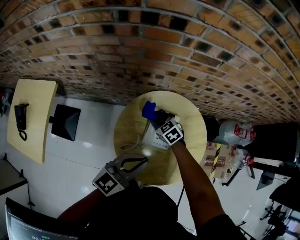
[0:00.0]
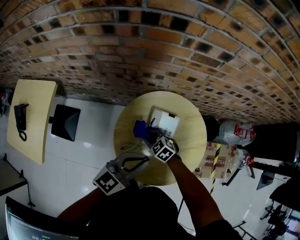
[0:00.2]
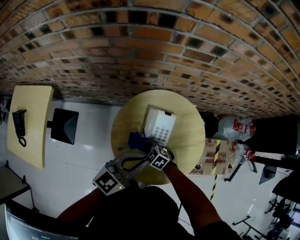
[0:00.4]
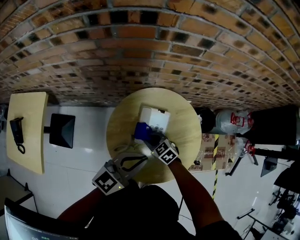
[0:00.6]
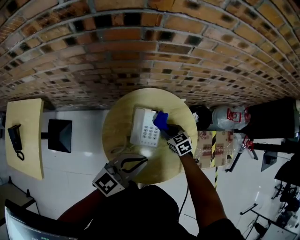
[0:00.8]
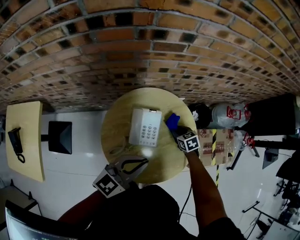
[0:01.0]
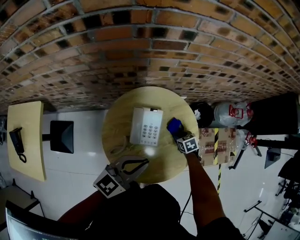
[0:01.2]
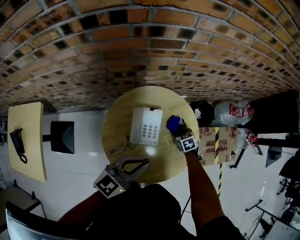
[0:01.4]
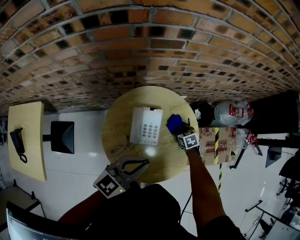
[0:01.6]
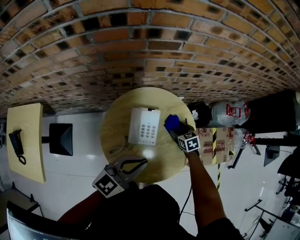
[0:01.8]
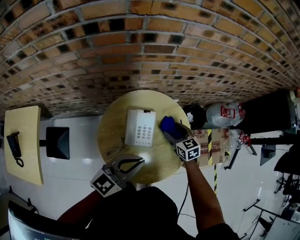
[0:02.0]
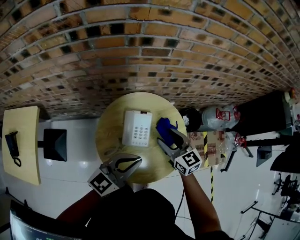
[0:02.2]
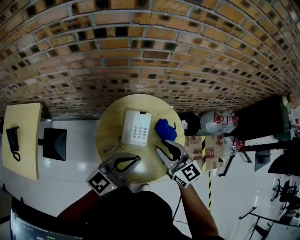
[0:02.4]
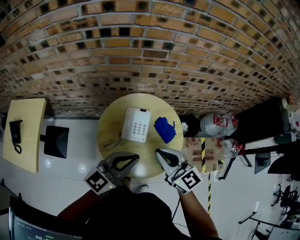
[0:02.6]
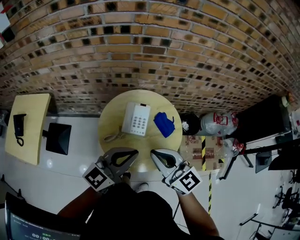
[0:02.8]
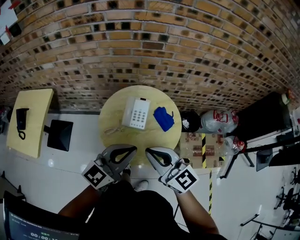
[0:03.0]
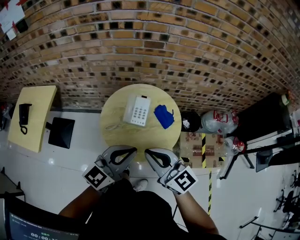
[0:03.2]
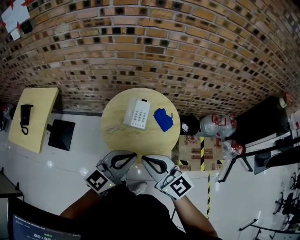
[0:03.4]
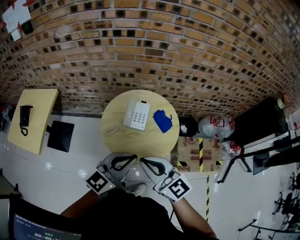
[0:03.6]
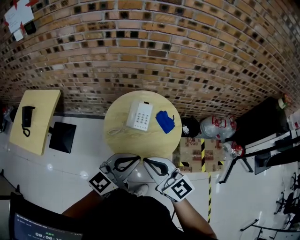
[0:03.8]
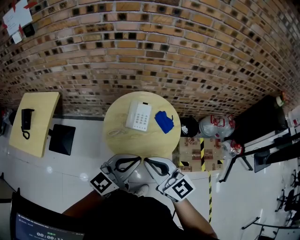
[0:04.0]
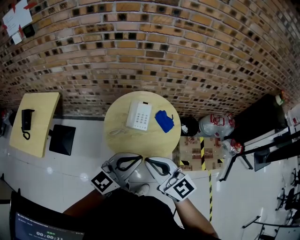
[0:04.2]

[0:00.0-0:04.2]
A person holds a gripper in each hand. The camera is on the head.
0:00.0 to 0:01.4: The right gripper ends up some 30 cm from where it was, and turns by approximately 40 degrees, while the left gripper changes place by some 10 cm.
0:01.4 to 0:02.8: The left gripper moves upward and backward, some 15 cm. The right gripper moves upward and backward, approximately 50 cm, tilts its fingers about 60 degrees upward, and closes up.
0:02.8 to 0:04.2: The grippers both shift backward by about 10 cm.

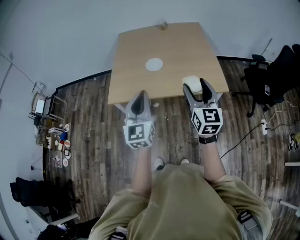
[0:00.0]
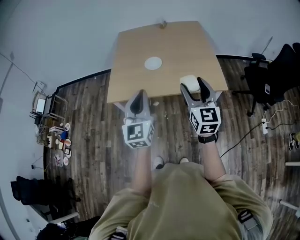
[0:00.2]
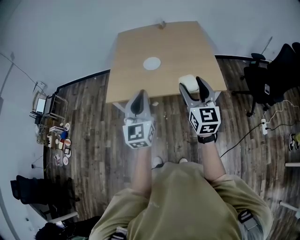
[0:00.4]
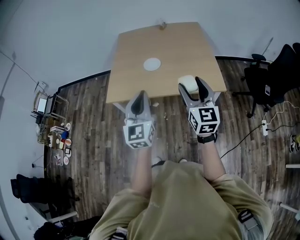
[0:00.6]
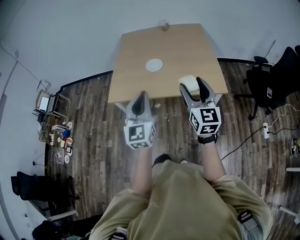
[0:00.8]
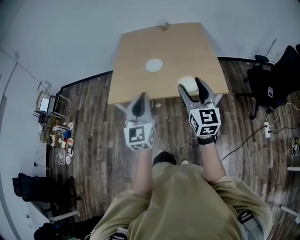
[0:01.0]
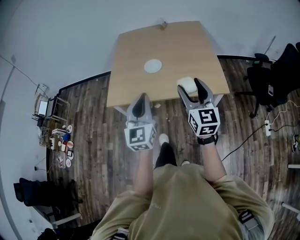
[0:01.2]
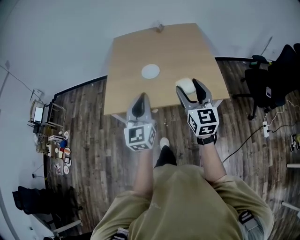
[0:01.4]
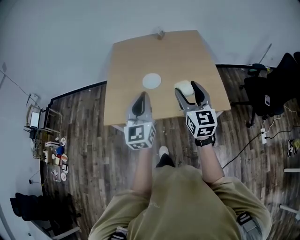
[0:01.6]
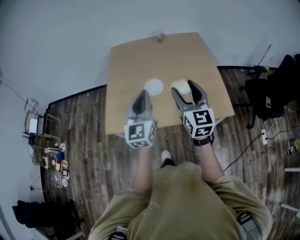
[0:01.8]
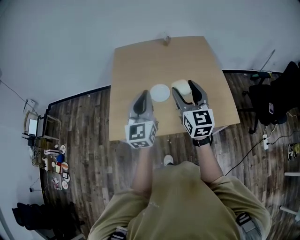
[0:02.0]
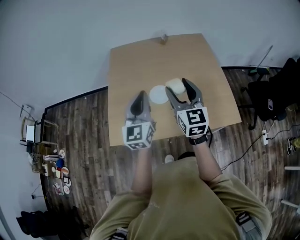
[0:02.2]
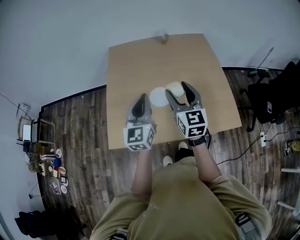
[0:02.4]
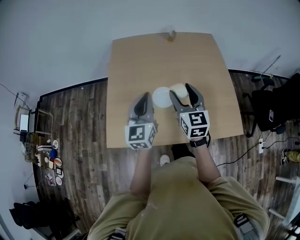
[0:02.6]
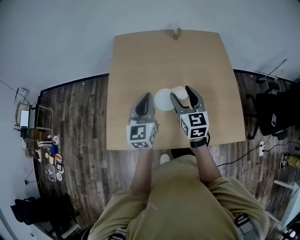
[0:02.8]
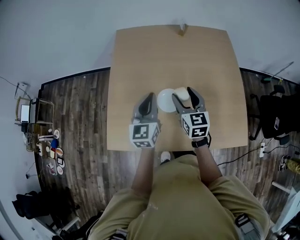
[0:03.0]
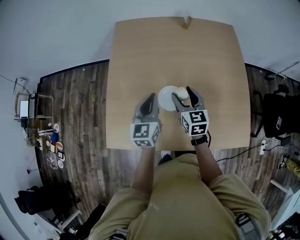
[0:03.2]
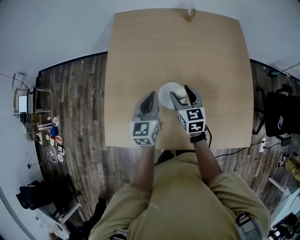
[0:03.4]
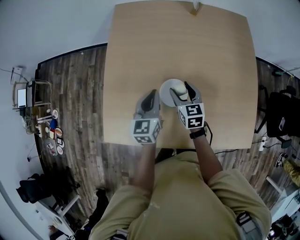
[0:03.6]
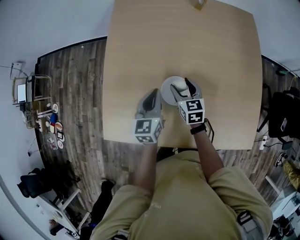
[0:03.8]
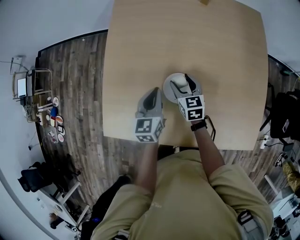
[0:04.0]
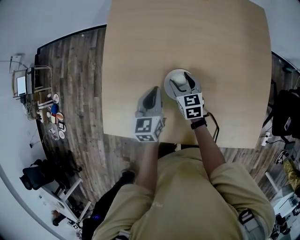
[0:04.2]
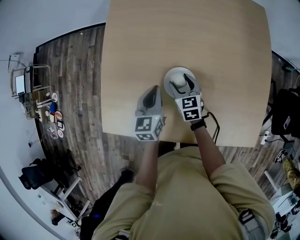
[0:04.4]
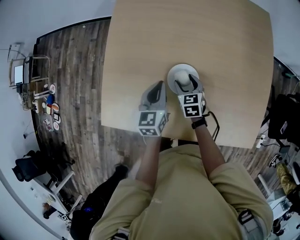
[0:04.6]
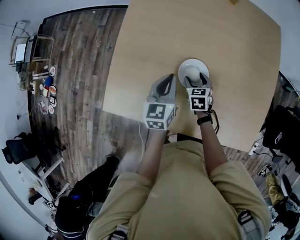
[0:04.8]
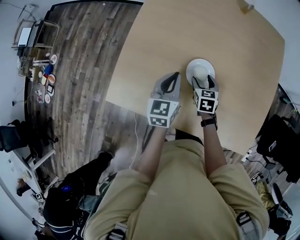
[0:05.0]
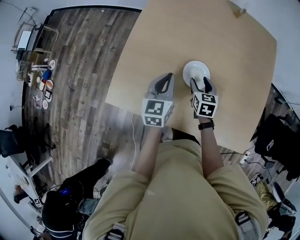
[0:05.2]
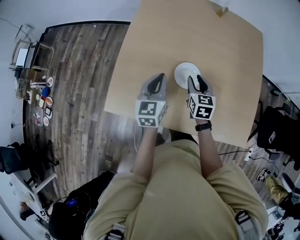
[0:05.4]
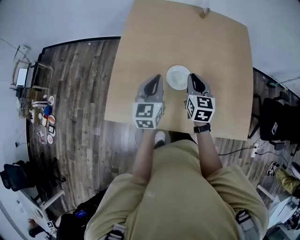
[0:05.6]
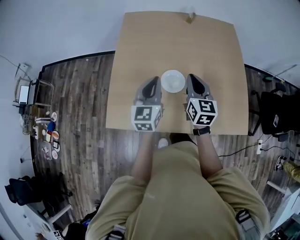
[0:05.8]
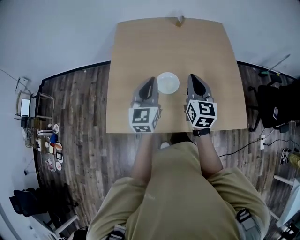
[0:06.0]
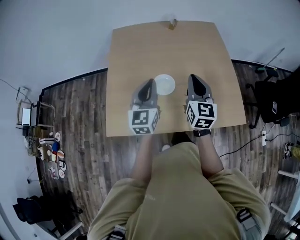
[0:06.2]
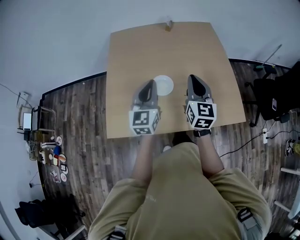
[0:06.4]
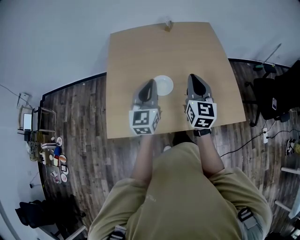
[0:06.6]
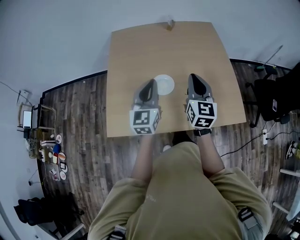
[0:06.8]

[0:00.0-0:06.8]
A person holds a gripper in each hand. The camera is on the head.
0:00.0 to 0:01.4: The grippers both shift forward by approximately 10 cm.
0:01.4 to 0:02.8: The two grippers travel together, forward, some 40 cm.
0:02.8 to 0:04.0: Both grippers travel together downward and forward, roughly 25 cm. The left gripper swivels roughly 20 degrees, while the right gripper turns by approximately 30 degrees.
0:04.0 to 0:05.4: The left gripper is displaced backward, to the left and upward by about 15 cm; the right gripper moves backward and upward, approximately 10 cm, and closes up.
0:05.4 to 0:06.8: Both grippers move upward, to the right and backward, roughly 25 cm. The left gripper swivels some 20 degrees, while the right gripper rotates approximately 30 degrees, and closes its fingers.

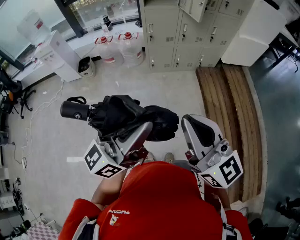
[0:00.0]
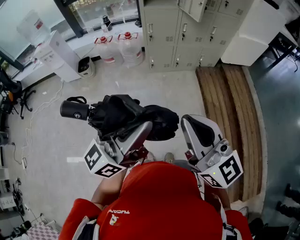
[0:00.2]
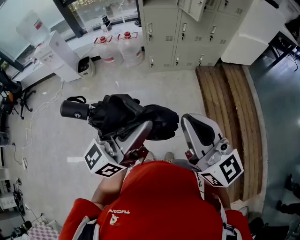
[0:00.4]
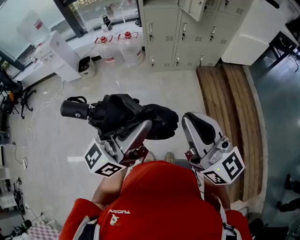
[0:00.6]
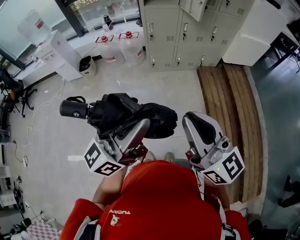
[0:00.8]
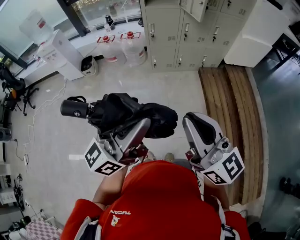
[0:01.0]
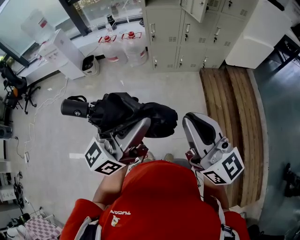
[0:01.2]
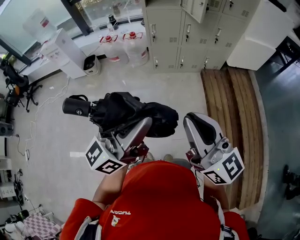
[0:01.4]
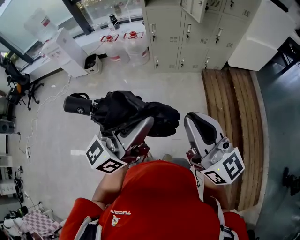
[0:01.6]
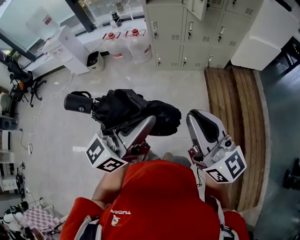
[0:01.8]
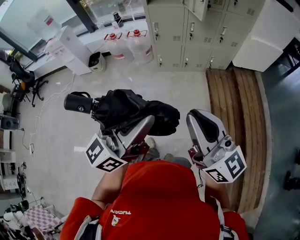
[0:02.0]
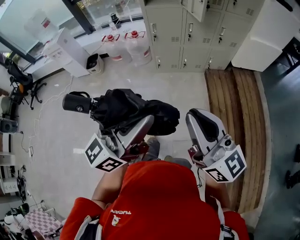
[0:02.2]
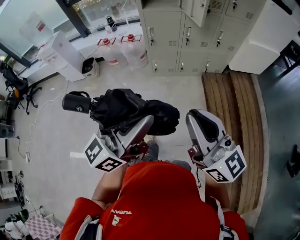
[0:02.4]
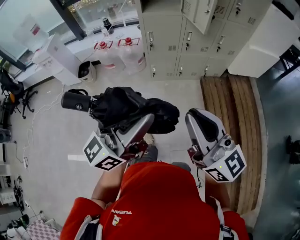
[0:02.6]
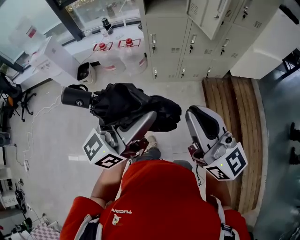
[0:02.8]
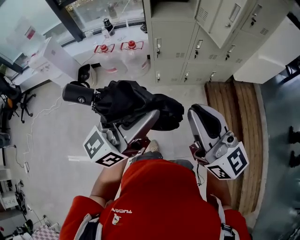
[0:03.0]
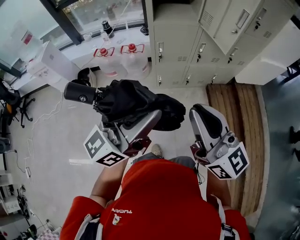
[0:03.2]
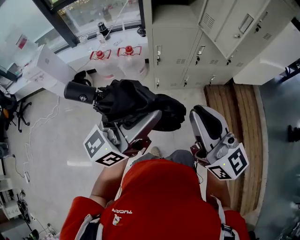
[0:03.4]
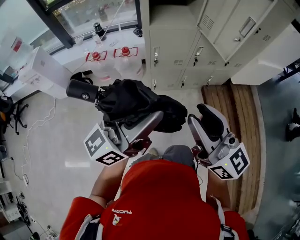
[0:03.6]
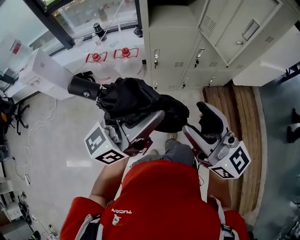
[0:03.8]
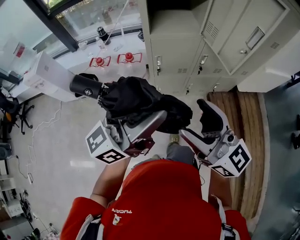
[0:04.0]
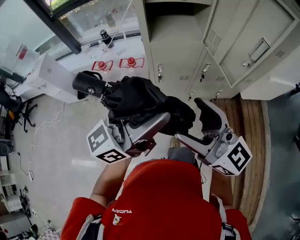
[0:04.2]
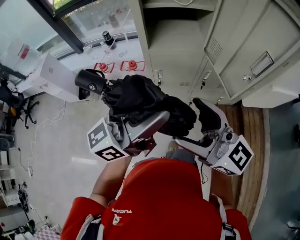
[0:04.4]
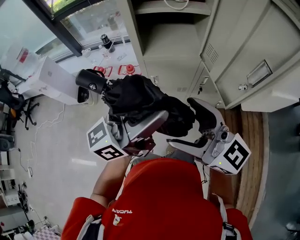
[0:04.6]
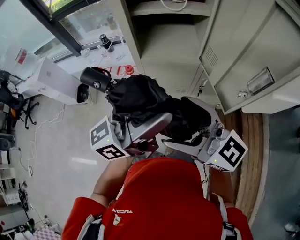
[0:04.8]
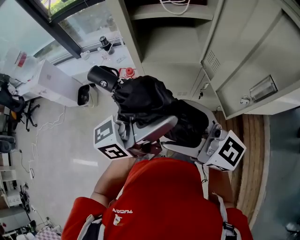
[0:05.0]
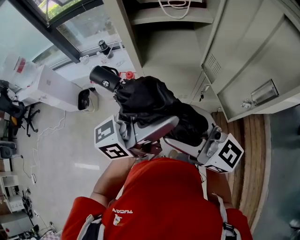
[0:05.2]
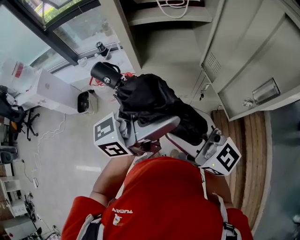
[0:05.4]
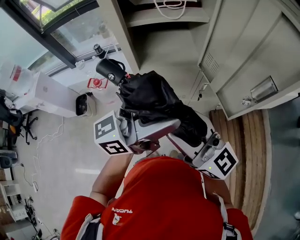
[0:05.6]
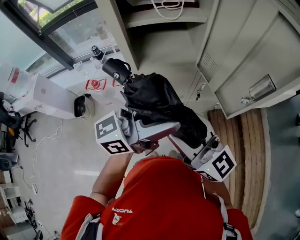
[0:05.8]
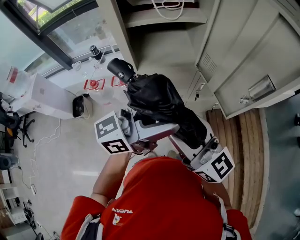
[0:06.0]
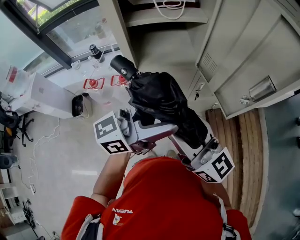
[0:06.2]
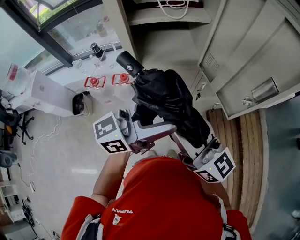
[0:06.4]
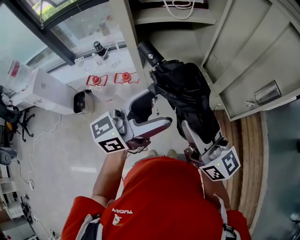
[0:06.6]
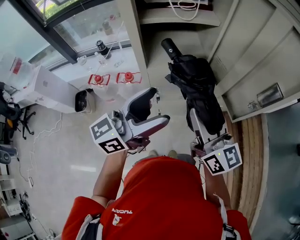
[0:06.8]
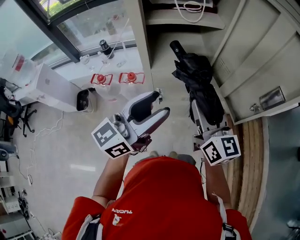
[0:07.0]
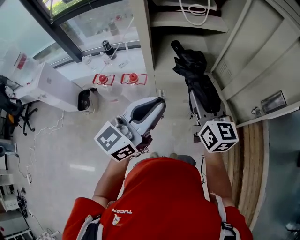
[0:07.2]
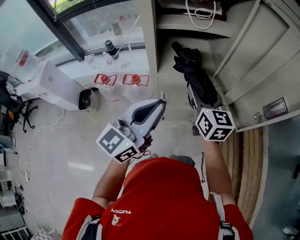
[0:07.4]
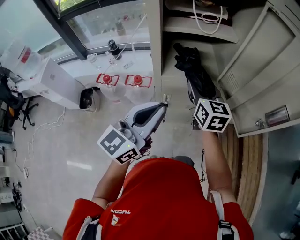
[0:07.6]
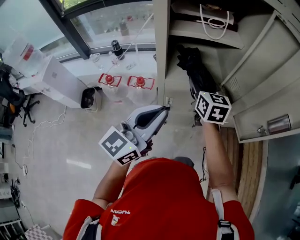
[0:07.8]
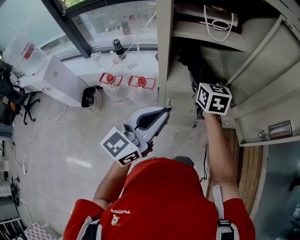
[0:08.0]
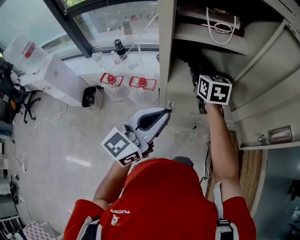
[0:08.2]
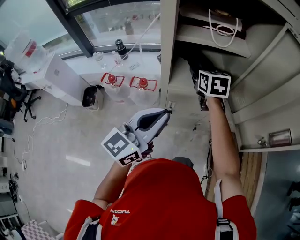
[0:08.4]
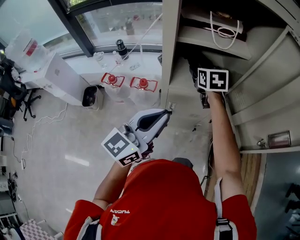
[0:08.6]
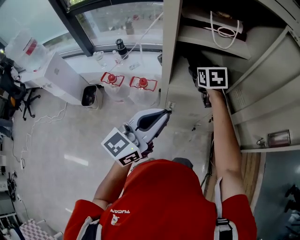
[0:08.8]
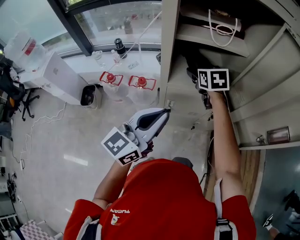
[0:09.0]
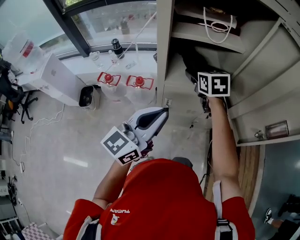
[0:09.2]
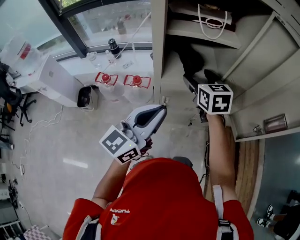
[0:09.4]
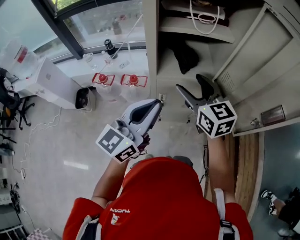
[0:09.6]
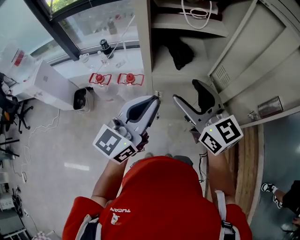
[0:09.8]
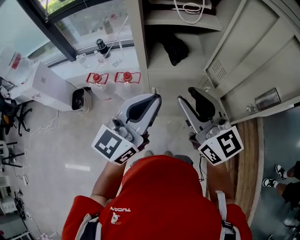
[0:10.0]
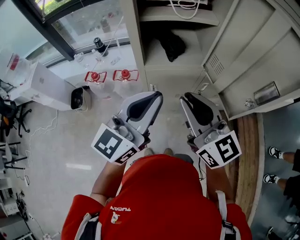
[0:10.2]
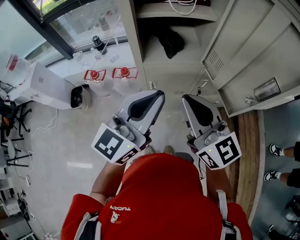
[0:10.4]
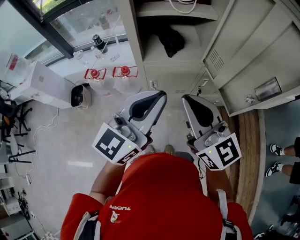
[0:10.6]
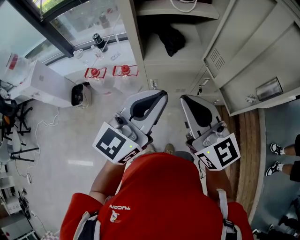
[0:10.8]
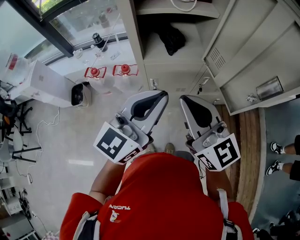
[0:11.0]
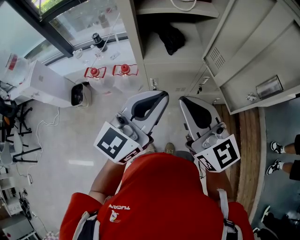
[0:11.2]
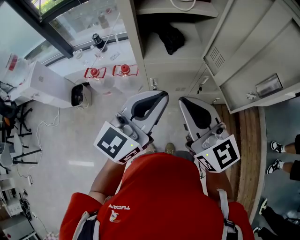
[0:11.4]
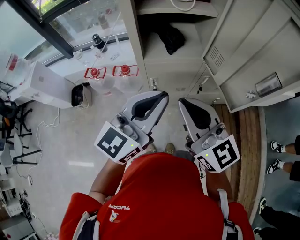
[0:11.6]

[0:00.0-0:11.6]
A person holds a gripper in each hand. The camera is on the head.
0:00.0 to 0:01.4: Both grippers move to the right, roughly 10 cm.
0:01.4 to 0:02.8: The two grippers go roughly 20 cm forward.
0:02.8 to 0:04.4: The grippers both shift forward by some 30 cm. The right gripper opens its fingers.
0:04.4 to 0:05.8: The grippers both shift forward by roughly 10 cm. The right gripper closes.
0:05.8 to 0:07.2: The left gripper goes some 10 cm to the left, swivels some 30 degrees, and closes up. Meanwhile the right gripper goes roughly 15 cm forward and downward, and changes its angle by roughly 30 degrees.
0:07.2 to 0:08.8: The right gripper shifts roughly 20 cm forward and to the left, and tilts its fingers some 30 degrees downward.
0:08.8 to 0:10.2: The left gripper goes about 5 cm to the right. The right gripper moves backward and upward, about 30 cm, angles its fingers upward, by roughly 40 degrees, and closes up.
0:10.2 to 0:11.6: The grippers stay close to where they were, moving slightly.

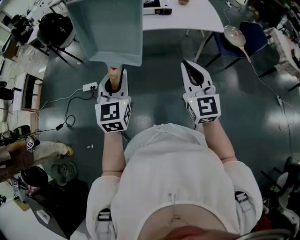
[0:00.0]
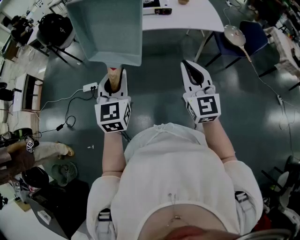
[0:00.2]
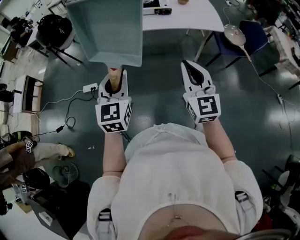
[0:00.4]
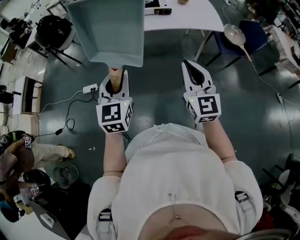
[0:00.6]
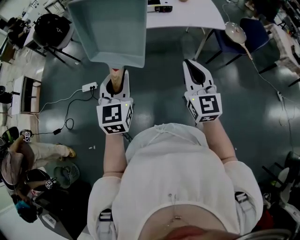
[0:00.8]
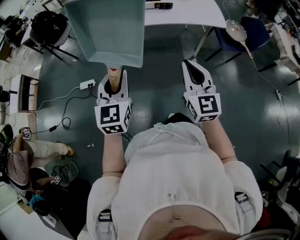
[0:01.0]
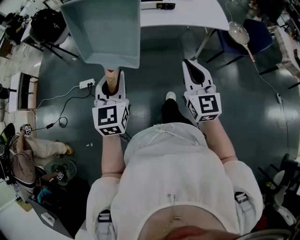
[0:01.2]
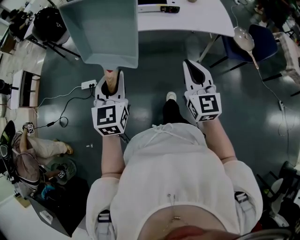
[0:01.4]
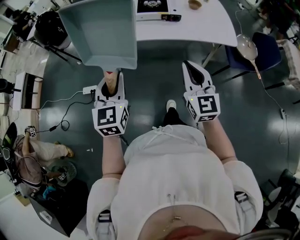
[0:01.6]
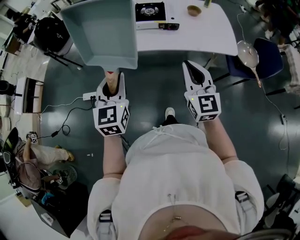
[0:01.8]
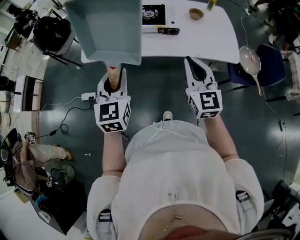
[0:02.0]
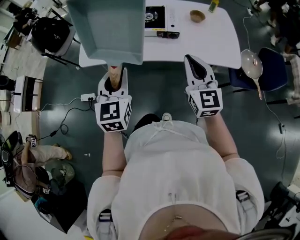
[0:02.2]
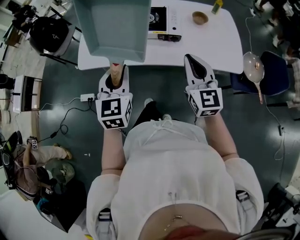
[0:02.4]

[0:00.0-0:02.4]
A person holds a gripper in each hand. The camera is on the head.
0:00.0 to 0:01.2: Both grippers move forward, approximately 5 cm.
0:01.2 to 0:02.4: Both grippers travel together forward, some 35 cm.
